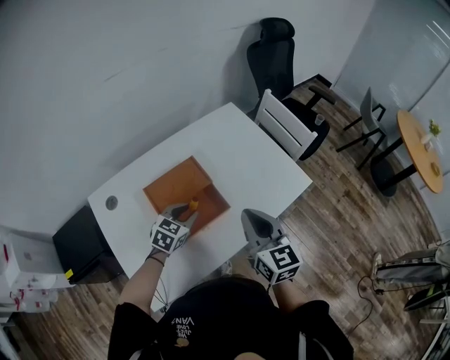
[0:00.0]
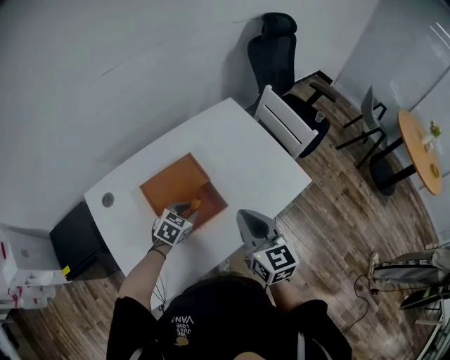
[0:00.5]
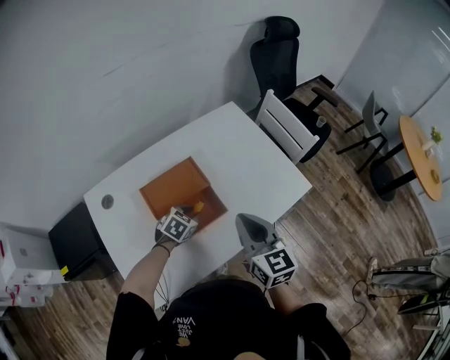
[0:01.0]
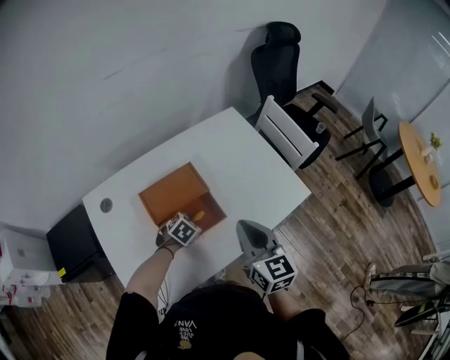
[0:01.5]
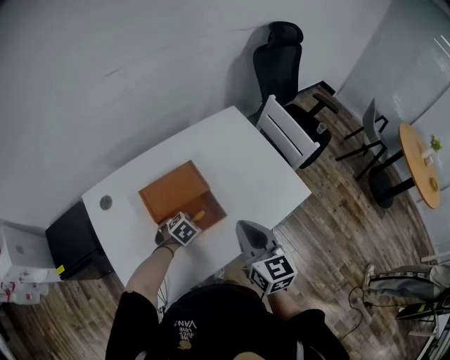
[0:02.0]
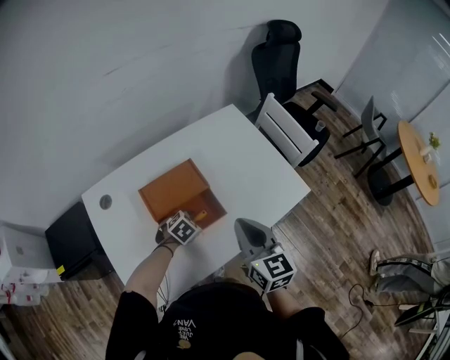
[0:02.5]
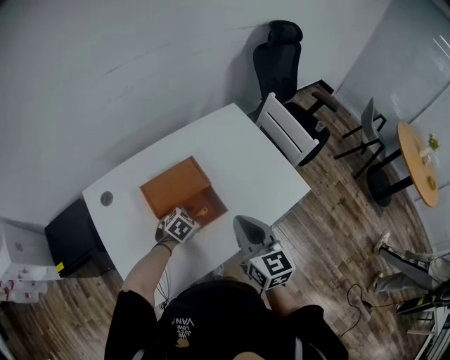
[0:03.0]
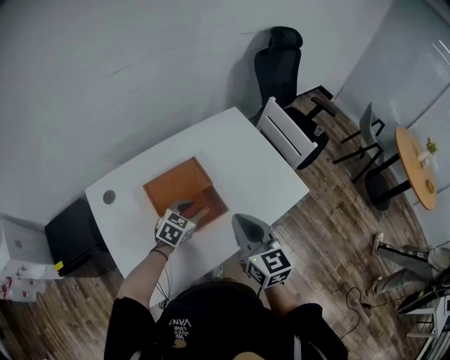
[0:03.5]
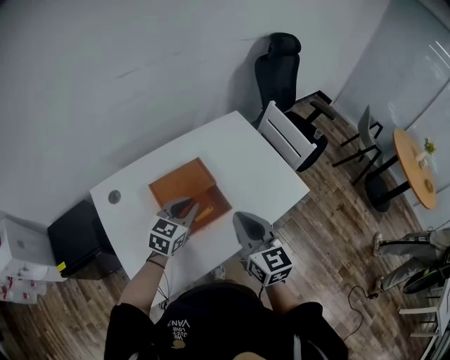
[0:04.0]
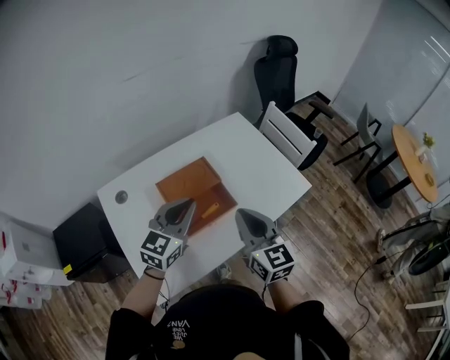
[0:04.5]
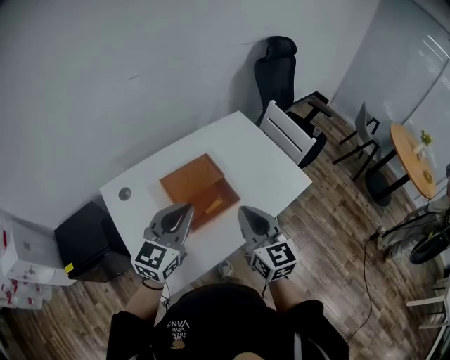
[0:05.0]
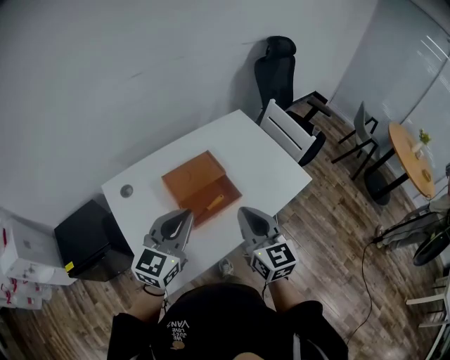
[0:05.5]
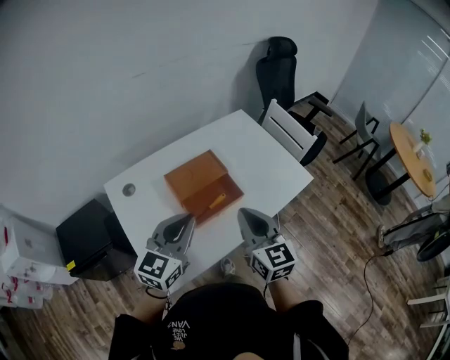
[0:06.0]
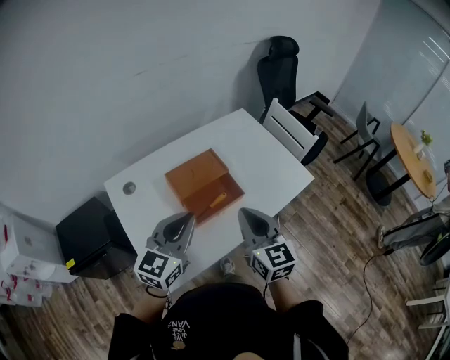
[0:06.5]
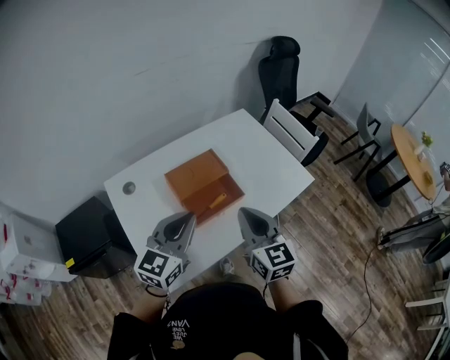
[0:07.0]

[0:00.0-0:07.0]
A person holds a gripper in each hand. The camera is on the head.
0:00.0 to 0:02.0: The left gripper travels downward by approximately 10 cm, and rotates roughly 30 degrees.
0:02.0 to 0:03.5: The left gripper moves upward, some 10 cm, and rotates about 30 degrees.
0:03.5 to 0:05.0: The right gripper shifts some 5 cm backward. Meanwhile the left gripper shifts approximately 25 cm upward and backward, angles its fingers upward, by some 30 degrees, and closes its fingers.
0:05.0 to 0:07.0: The grippers stay close to where they were, moving slightly.

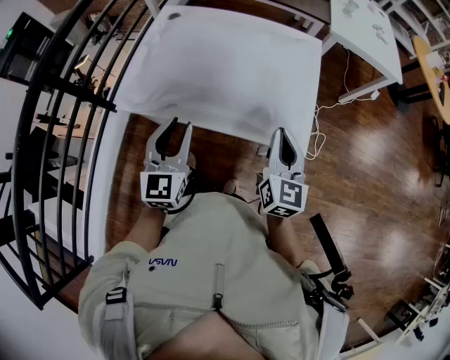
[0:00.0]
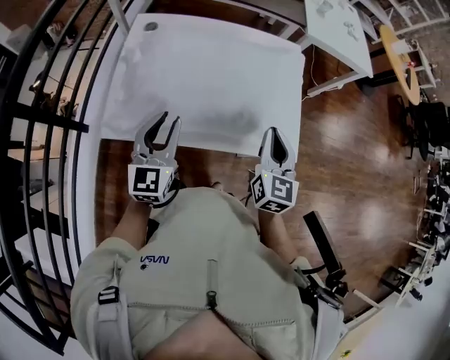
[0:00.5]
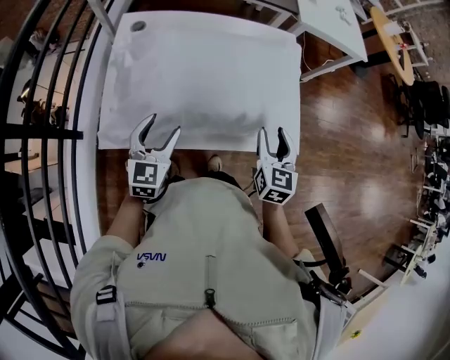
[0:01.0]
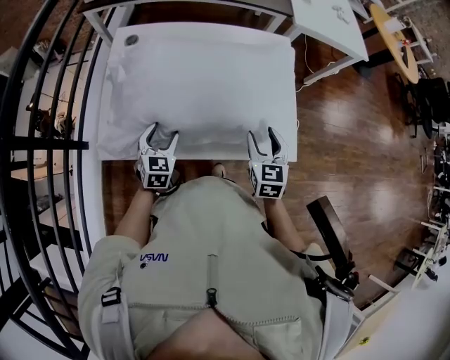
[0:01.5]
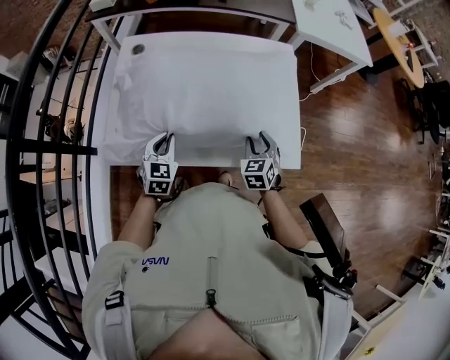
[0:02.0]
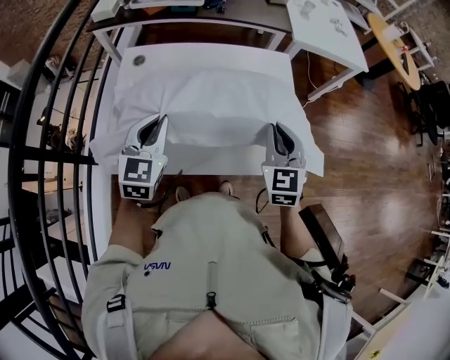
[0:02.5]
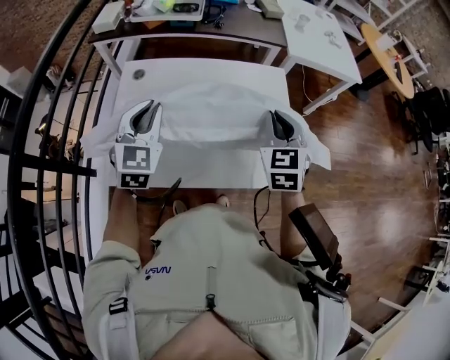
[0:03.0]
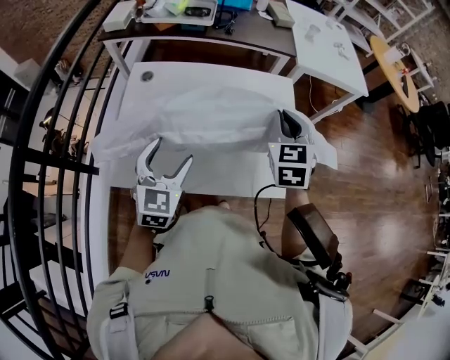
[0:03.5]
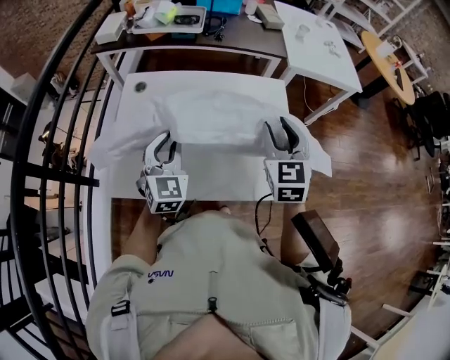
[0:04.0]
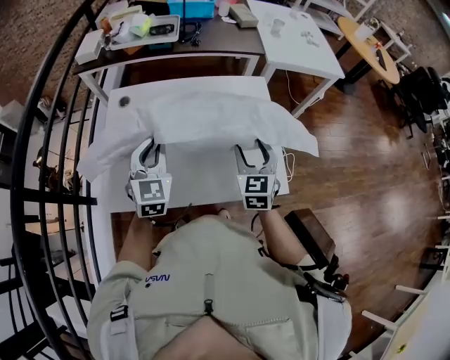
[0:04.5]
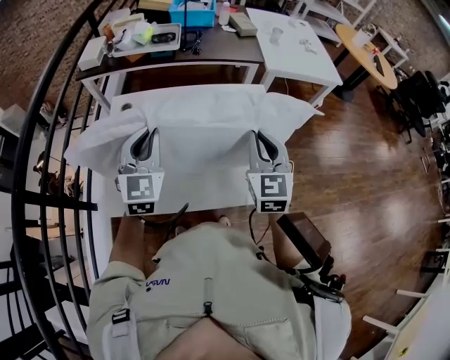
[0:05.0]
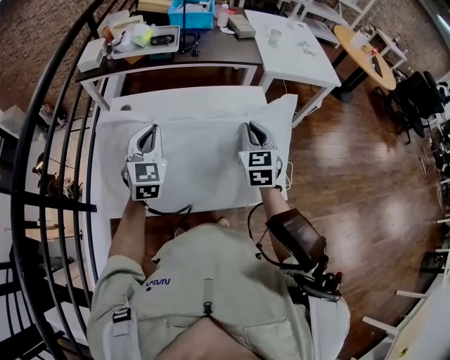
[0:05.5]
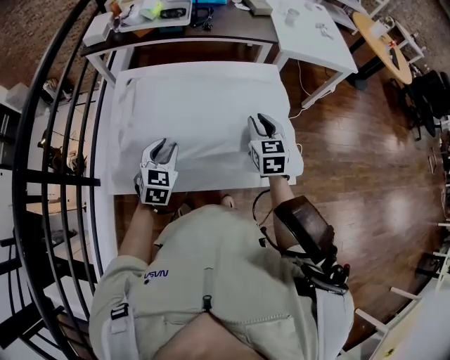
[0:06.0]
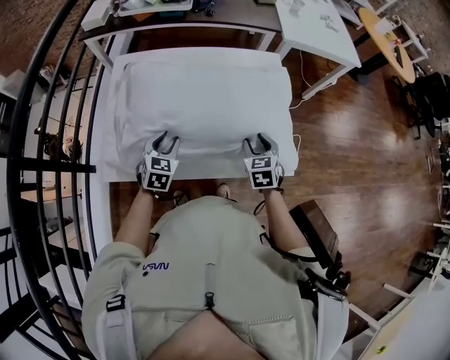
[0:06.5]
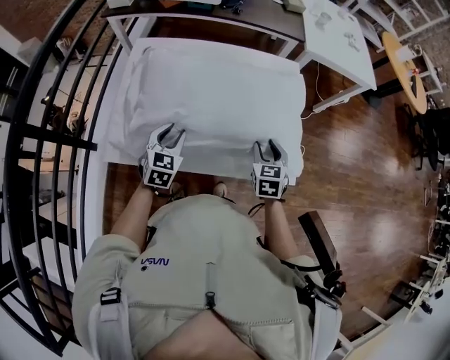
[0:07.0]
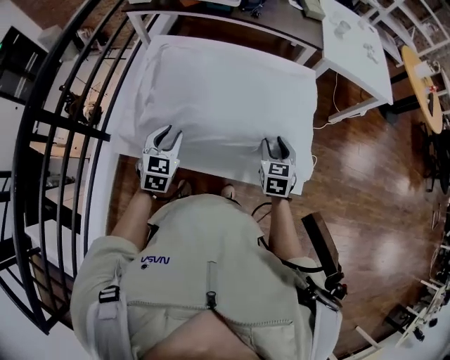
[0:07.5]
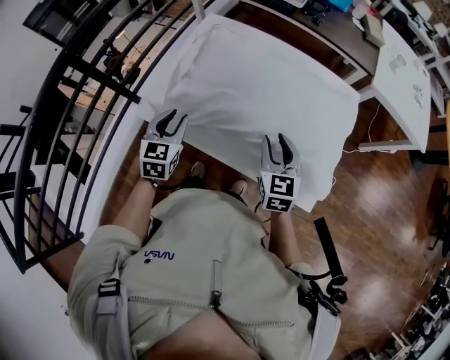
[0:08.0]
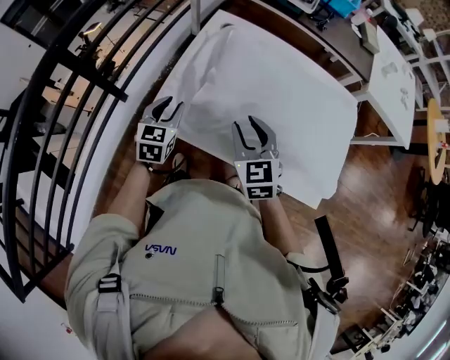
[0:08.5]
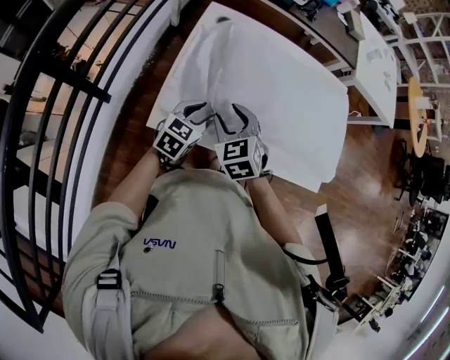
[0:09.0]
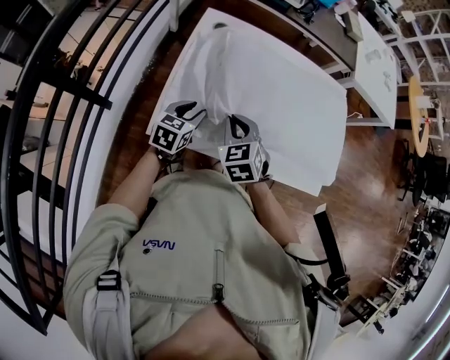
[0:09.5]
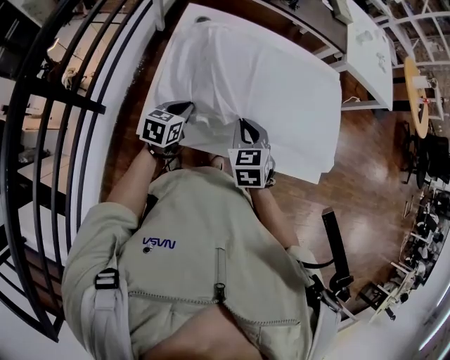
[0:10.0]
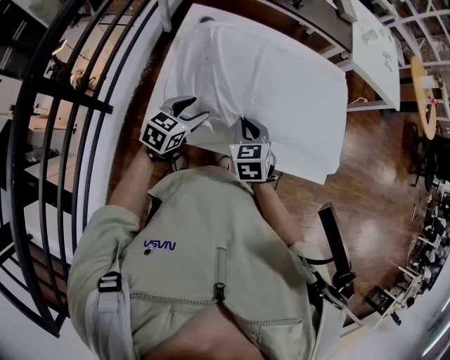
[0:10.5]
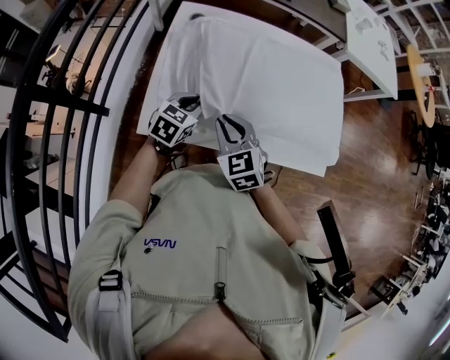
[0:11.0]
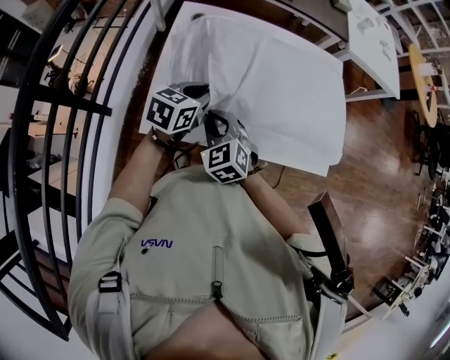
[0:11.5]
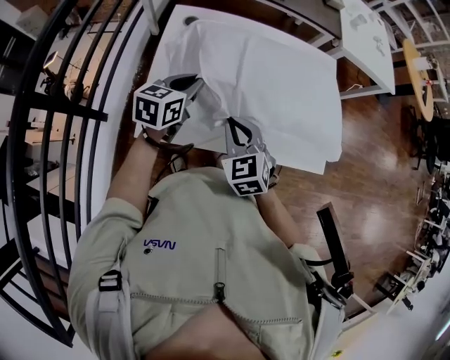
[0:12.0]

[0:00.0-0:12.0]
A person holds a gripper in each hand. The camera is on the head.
0:00.0 to 0:02.0: The right gripper goes some 20 cm downward and forward, changes its angle by approximately 40 degrees, and opens up, while the left gripper heads downward, forward and to the left, covering some 20 cm, swivels about 30 degrees, and opens and closes again.
0:02.0 to 0:04.0: The right gripper goes approximately 25 cm upward, swivels about 20 degrees, and closes, then opens again. The left gripper goes about 15 cm upward, turns by approximately 20 degrees, and opens, then closes once more.
0:04.0 to 0:06.0: The left gripper moves downward, approximately 10 cm, and swivels about 20 degrees; the right gripper moves up and down over about 15 cm, changing direction 2 times, and opens, then closes again.
0:06.0 to 0:08.0: The right gripper goes downward and returns, about 10 cm each way, and changes its angle by about 20 degrees. Meanwhile the left gripper changes place by roughly 10 cm, and rotates approximately 30 degrees.
0:08.0 to 0:10.0: The right gripper rotates about 20 degrees, and closes; the left gripper travels downward by some 10 cm, swivels some 40 degrees, and closes.
0:10.0 to 0:12.0: The left gripper heads upward and forward, covering some 10 cm, and opens and closes again. The right gripper goes to the left and returns, roughly 10 cm each way.

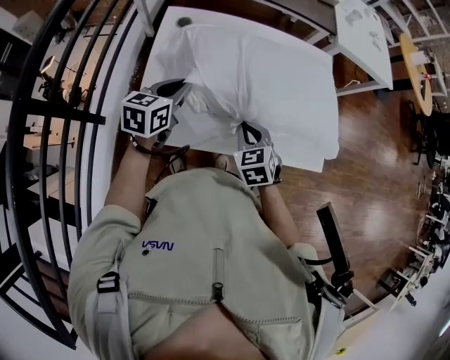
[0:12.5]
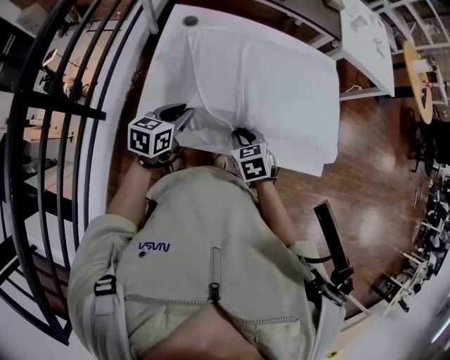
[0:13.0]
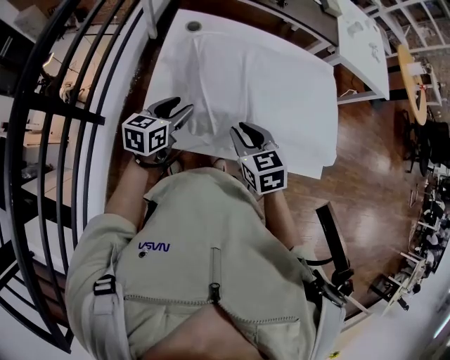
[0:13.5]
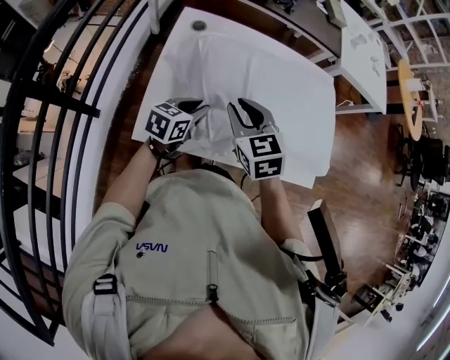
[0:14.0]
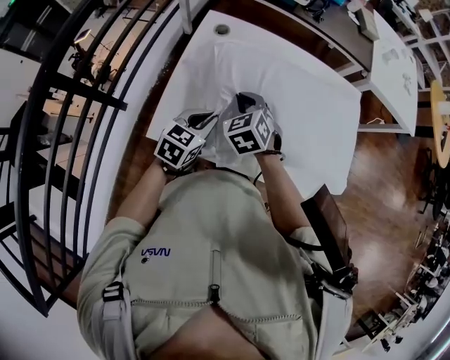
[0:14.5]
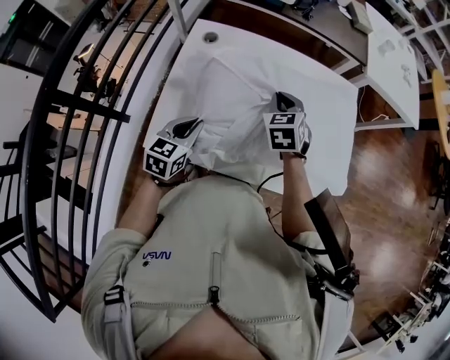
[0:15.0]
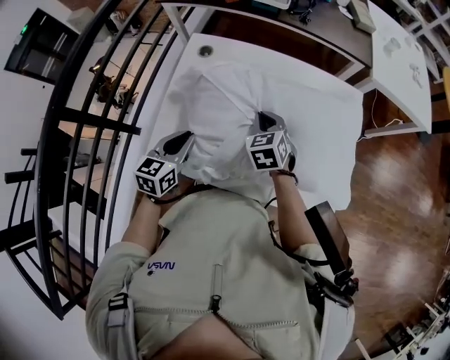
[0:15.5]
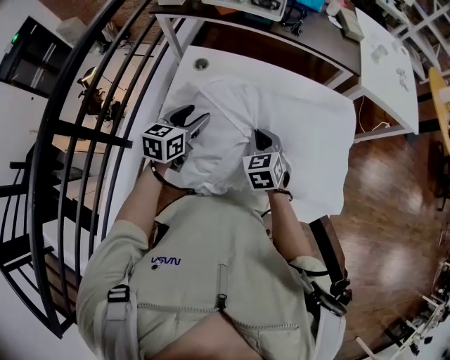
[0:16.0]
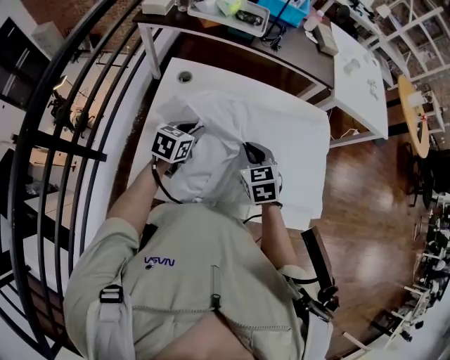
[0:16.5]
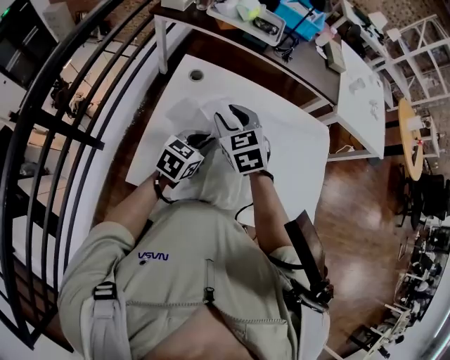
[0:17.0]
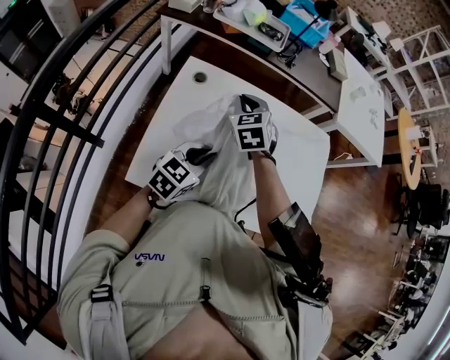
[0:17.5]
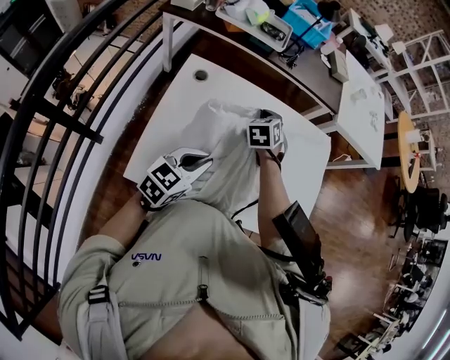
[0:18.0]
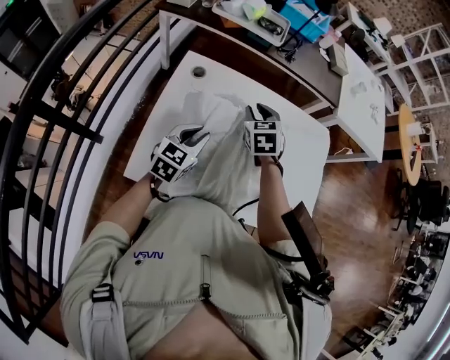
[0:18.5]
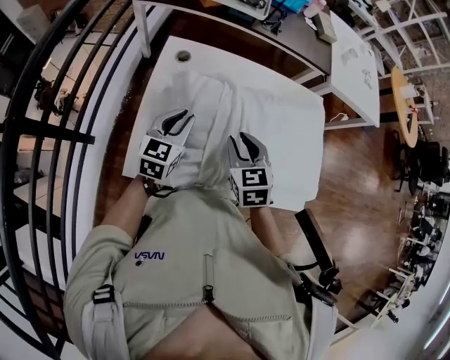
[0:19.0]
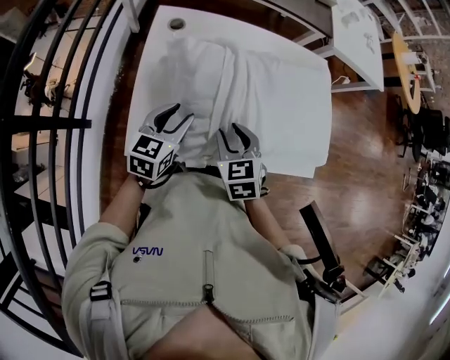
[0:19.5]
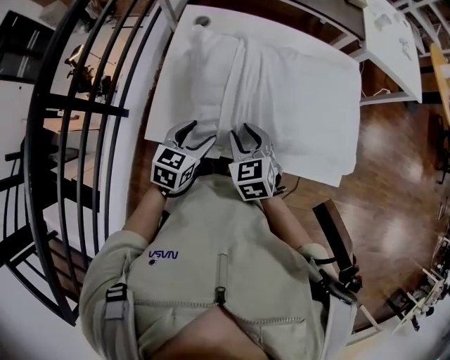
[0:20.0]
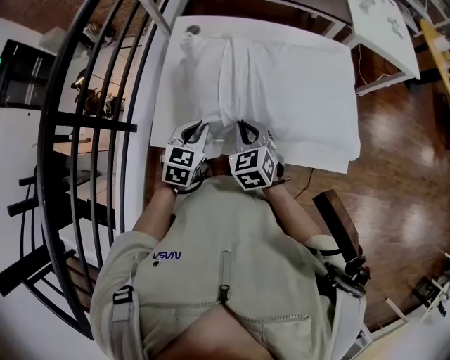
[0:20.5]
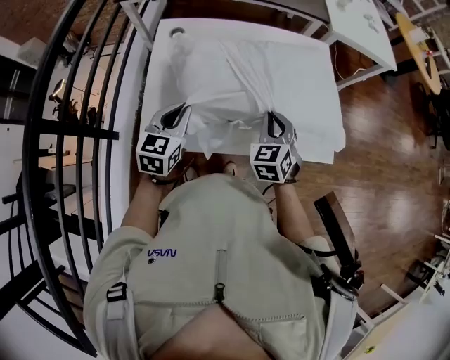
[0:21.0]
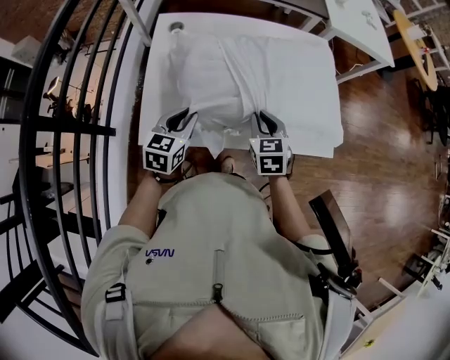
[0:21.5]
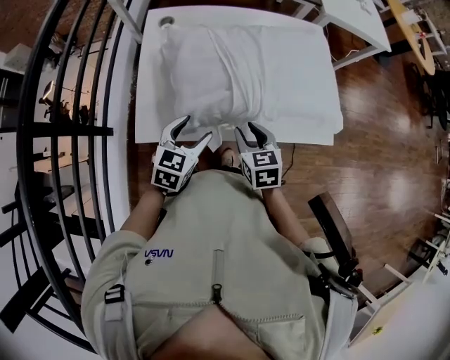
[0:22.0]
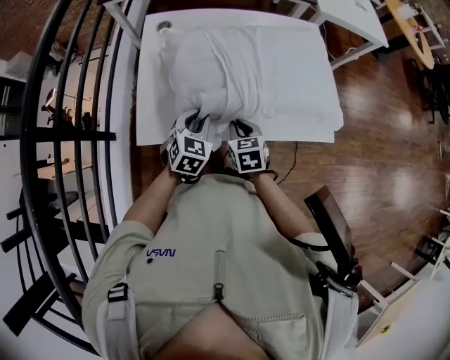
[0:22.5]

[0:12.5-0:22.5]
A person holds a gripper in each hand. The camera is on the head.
0:12.5 to 0:14.5: The left gripper changes place by approximately 5 cm, and opens, then closes again, while the right gripper swings up and down, approximately 15 cm each way, with 2 reversals.
0:14.5 to 0:16.5: The left gripper is displaced forward by approximately 15 cm, and opens, then closes again. The right gripper travels to the right by roughly 10 cm.
0:16.5 to 0:18.5: The right gripper goes approximately 15 cm forward and to the left.
0:18.5 to 0:20.5: The left gripper moves backward, roughly 15 cm, and opens, then closes again, while the right gripper shifts approximately 25 cm backward.
0:20.5 to 0:22.5: The right gripper is displaced downward by about 5 cm, turns by about 30 degrees, and opens, then closes once more. The left gripper reaches some 5 cm upward, then returns, and opens and closes again.
